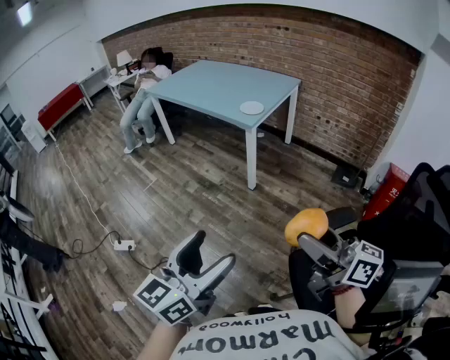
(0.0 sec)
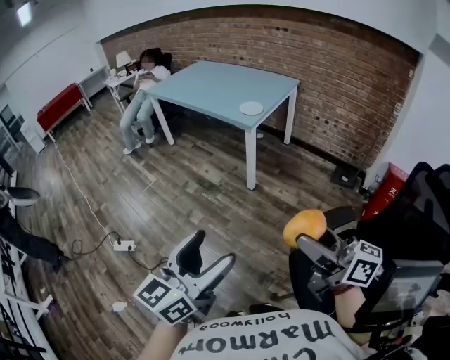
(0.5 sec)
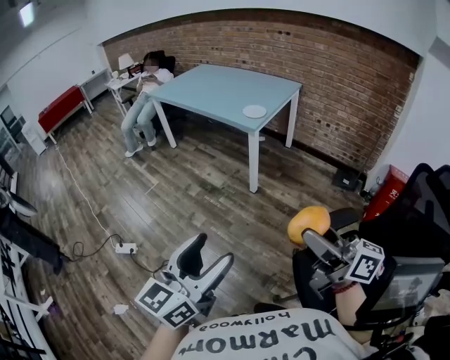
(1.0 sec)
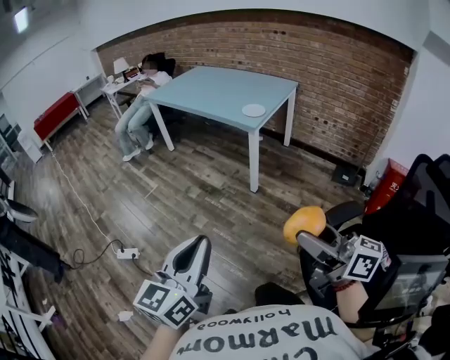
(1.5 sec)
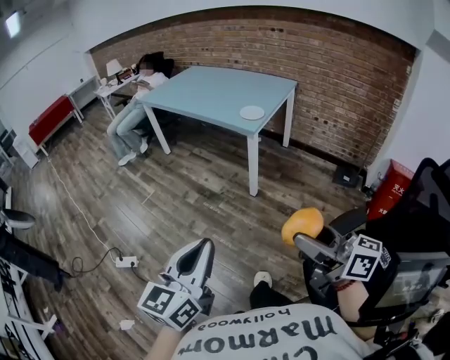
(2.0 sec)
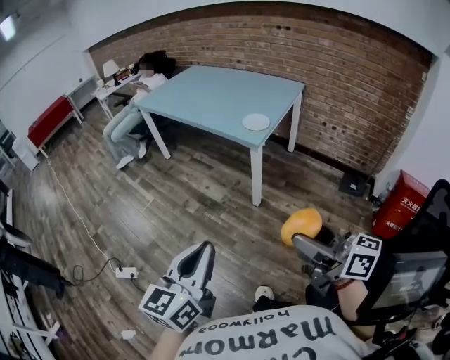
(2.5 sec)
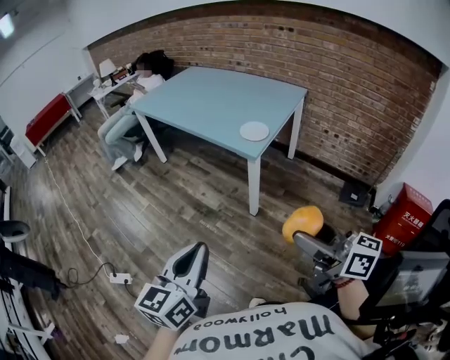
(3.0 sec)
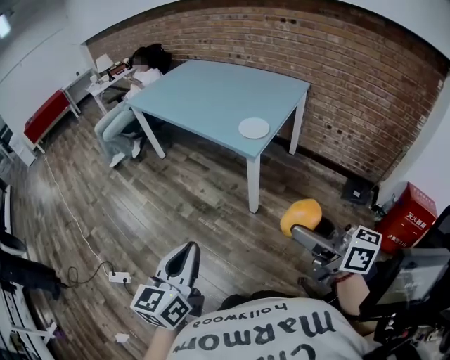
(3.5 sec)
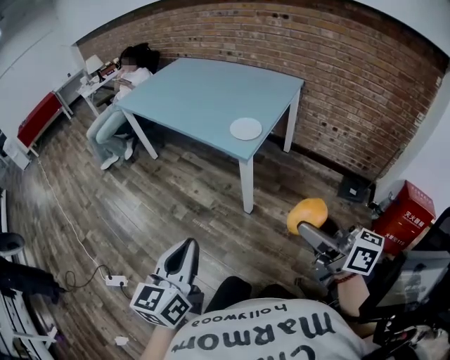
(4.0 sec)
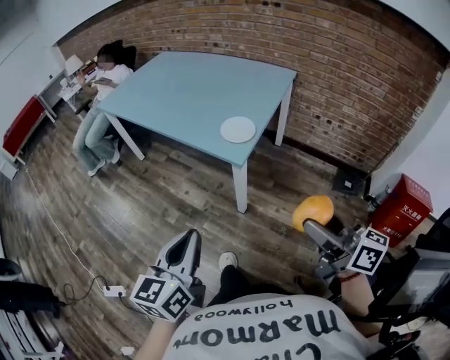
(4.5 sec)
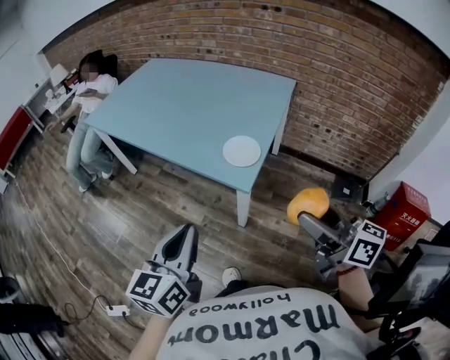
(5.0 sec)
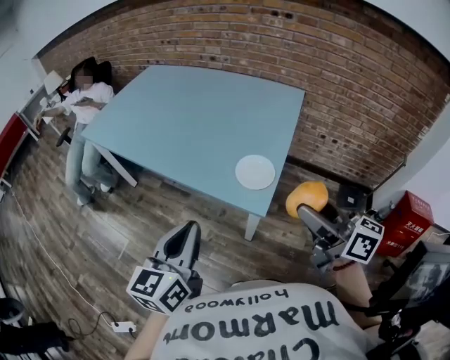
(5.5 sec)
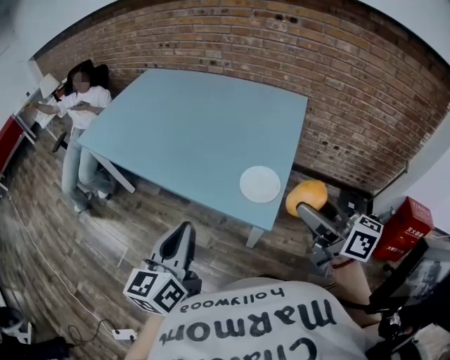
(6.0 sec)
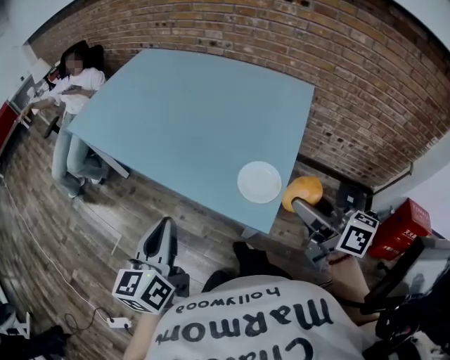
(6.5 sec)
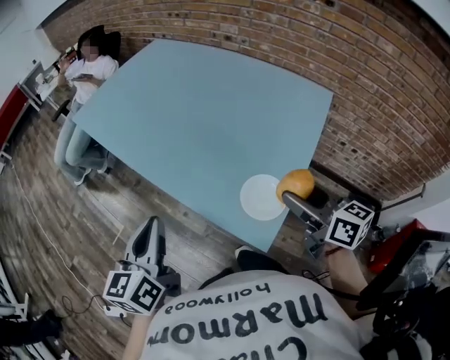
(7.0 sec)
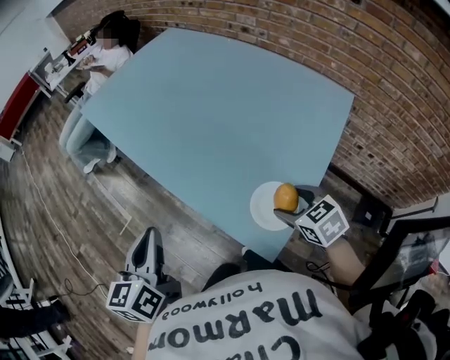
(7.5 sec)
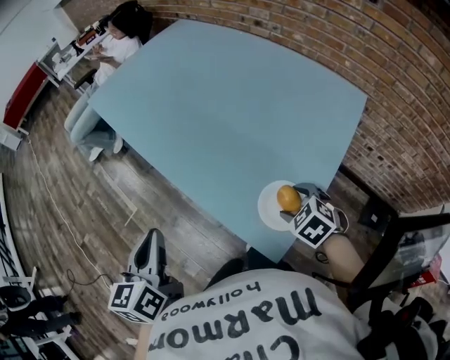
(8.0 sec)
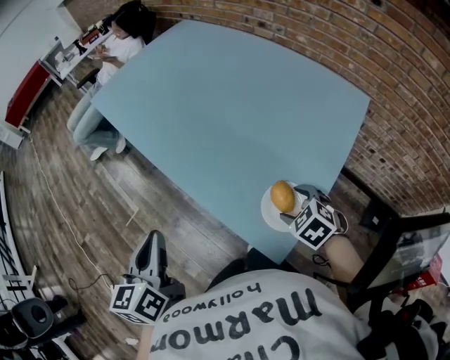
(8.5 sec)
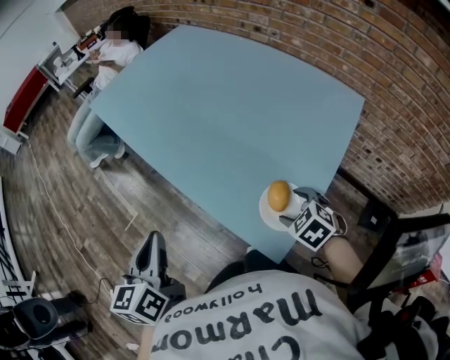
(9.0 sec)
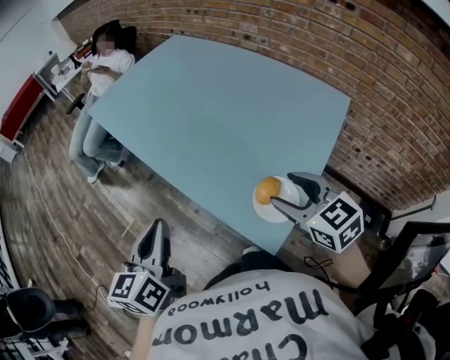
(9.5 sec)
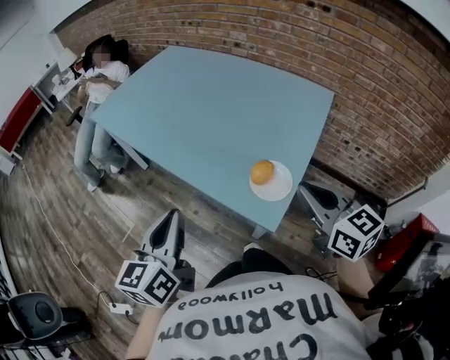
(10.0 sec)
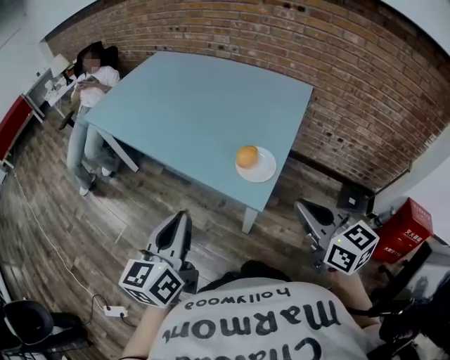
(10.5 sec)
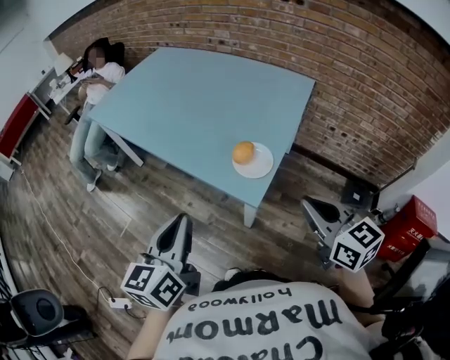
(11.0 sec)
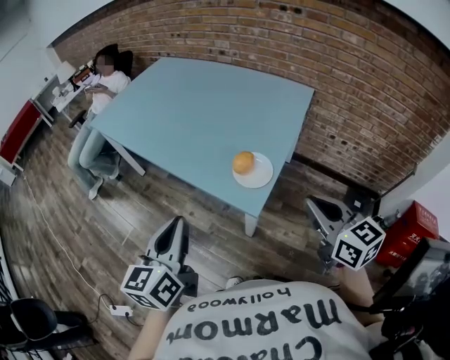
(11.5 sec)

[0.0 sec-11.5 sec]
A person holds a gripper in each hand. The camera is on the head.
0.0 sec to 2.0 sec: The grippers both shift to the left and forward by about 10 cm. The left gripper closes its fingers.
2.0 sec to 4.0 sec: The left gripper moves forward, about 30 cm. The right gripper heads forward and to the right, covering roughly 35 cm.
4.0 sec to 6.0 sec: Both grippers travel together forward, some 40 cm.
6.0 sec to 7.5 sec: The right gripper goes roughly 30 cm downward and forward, and points its fingers some 50 degrees further downward, while the left gripper heads forward, covering about 10 cm, and rotates roughly 30 degrees.
7.5 sec to 9.5 sec: The right gripper travels upward by about 10 cm.
9.5 sec to 11.5 sec: The left gripper travels backward and to the right by about 15 cm. The right gripper heads backward, covering some 25 cm, turns by about 30 degrees, and closes up.

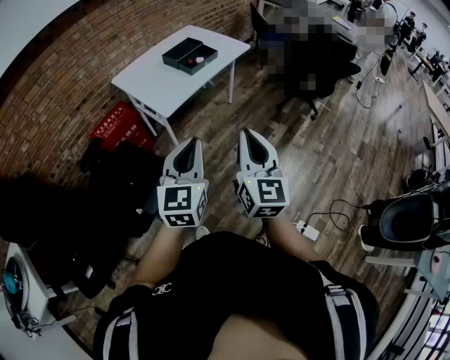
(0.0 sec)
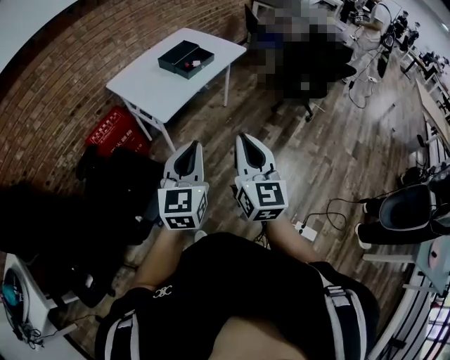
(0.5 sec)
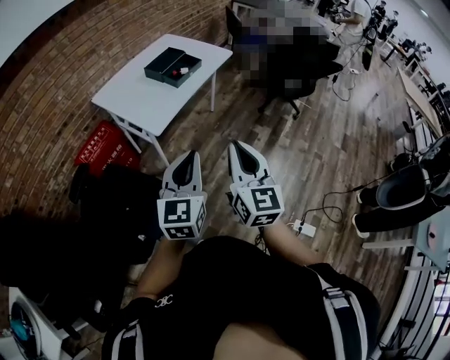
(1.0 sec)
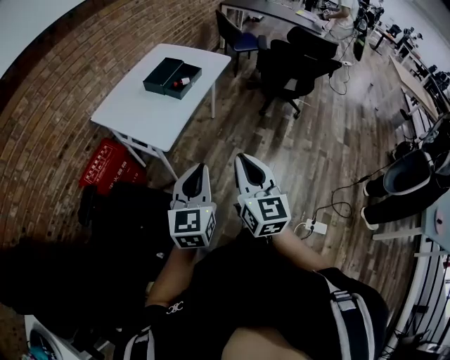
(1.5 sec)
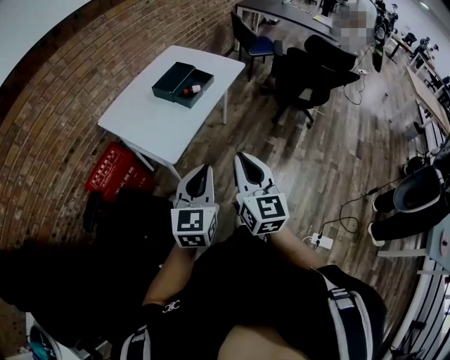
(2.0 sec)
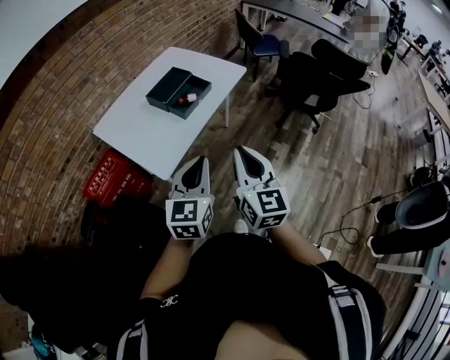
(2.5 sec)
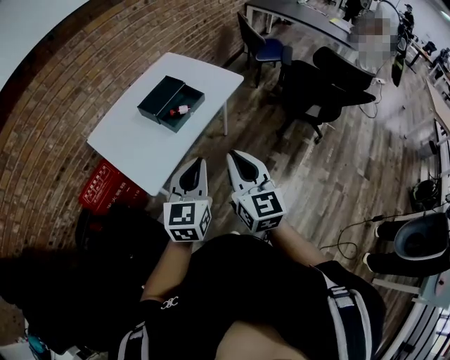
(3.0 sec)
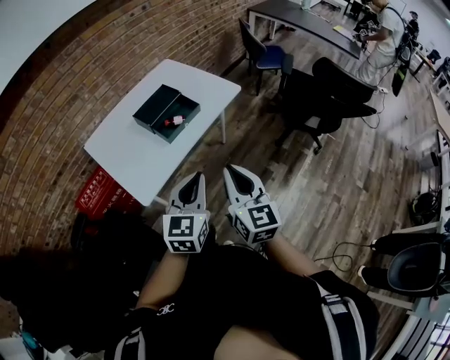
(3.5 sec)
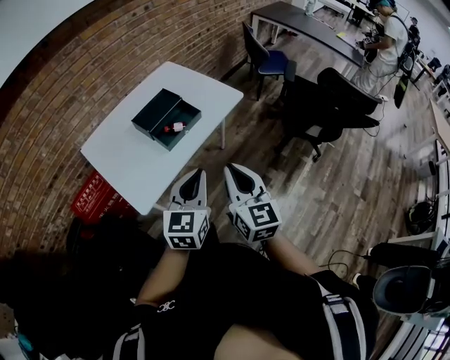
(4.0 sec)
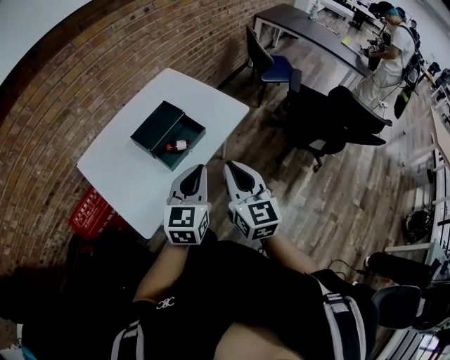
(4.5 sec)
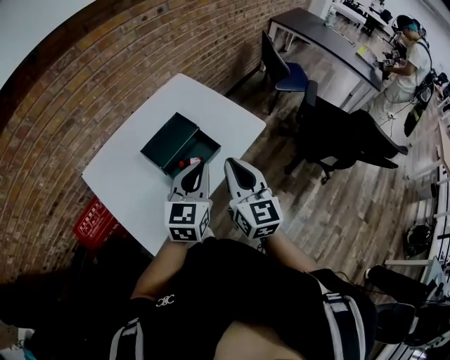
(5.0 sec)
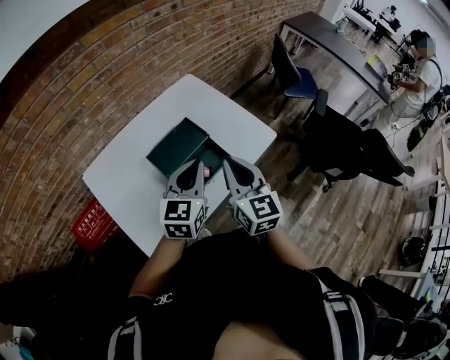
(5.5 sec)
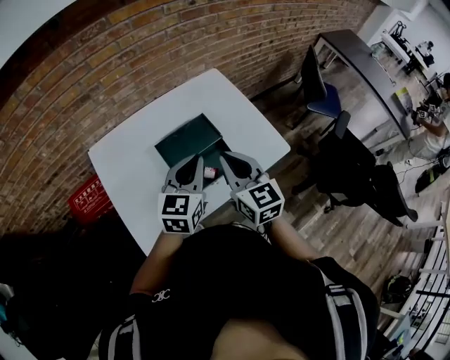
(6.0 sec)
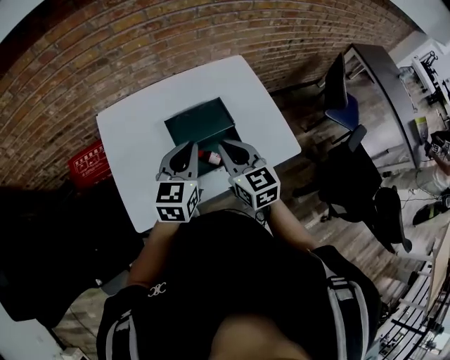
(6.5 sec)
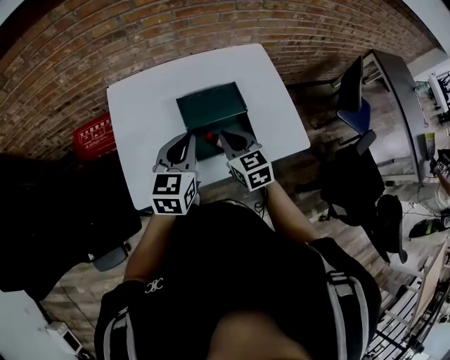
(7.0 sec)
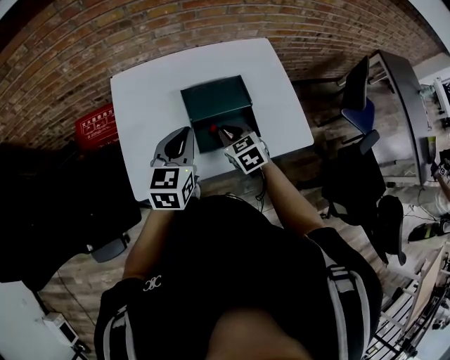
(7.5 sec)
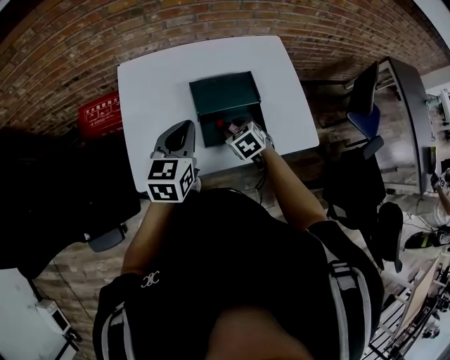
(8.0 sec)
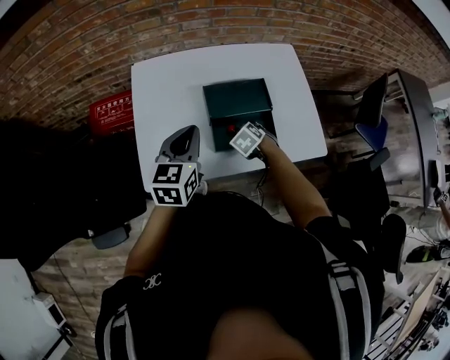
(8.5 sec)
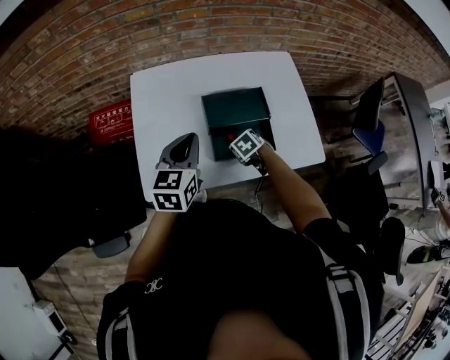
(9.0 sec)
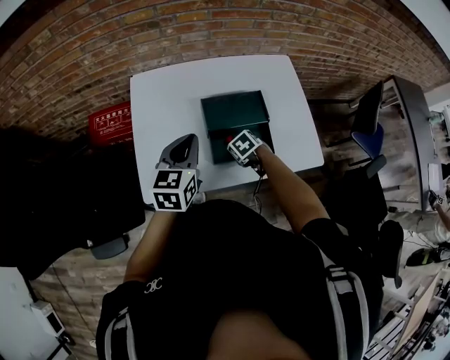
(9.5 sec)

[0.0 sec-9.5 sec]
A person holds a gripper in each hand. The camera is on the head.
0.0 sec to 2.0 sec: The two grippers go approximately 20 cm forward and to the left.
2.0 sec to 4.0 sec: Both grippers travel together forward and to the right, some 30 cm.
4.0 sec to 5.5 sec: The two grippers go about 30 cm forward.
5.5 sec to 7.5 sec: The right gripper is displaced downward by approximately 20 cm, and points its fingers approximately 30 degrees further downward; the left gripper shifts by some 10 cm, and swivels about 30 degrees.
7.5 sec to 9.5 sec: The right gripper is displaced downward by roughly 15 cm, points its fingers about 30 degrees further downward, and opens its fingers.

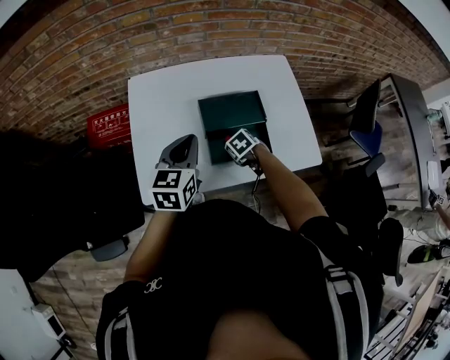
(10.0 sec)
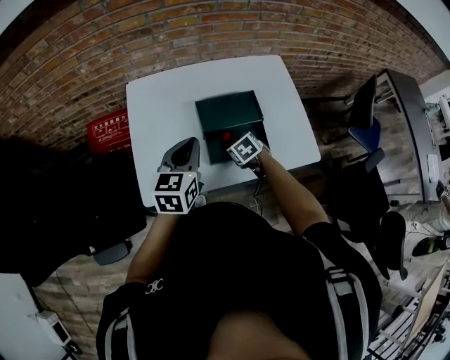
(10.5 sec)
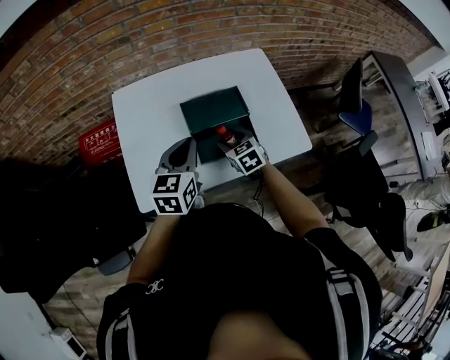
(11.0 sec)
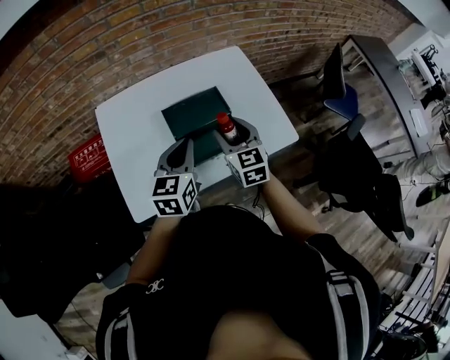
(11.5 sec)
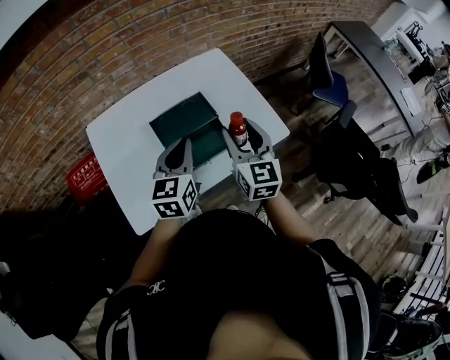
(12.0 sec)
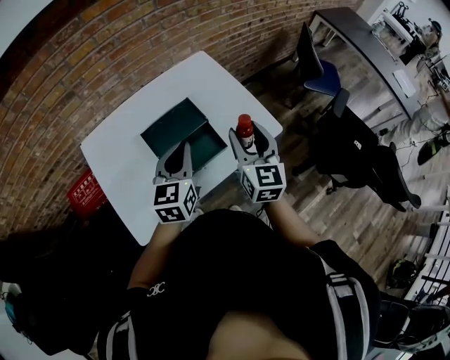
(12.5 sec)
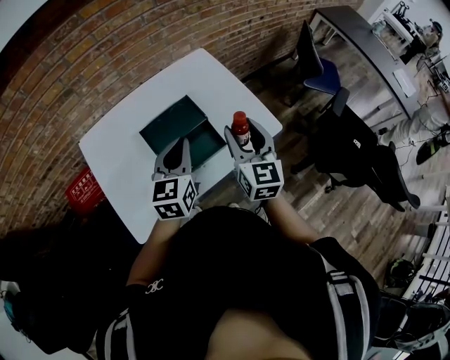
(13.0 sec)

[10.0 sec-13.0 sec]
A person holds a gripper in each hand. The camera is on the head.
10.0 sec to 11.5 sec: The right gripper heads upward, covering some 25 cm, and points its fingers some 50 degrees further upward. Meanwhile the left gripper shifts by some 10 cm.
11.5 sec to 13.0 sec: The left gripper is displaced to the right by about 5 cm. Meanwhile the right gripper shifts about 15 cm to the right and upward, and rotates roughly 30 degrees.

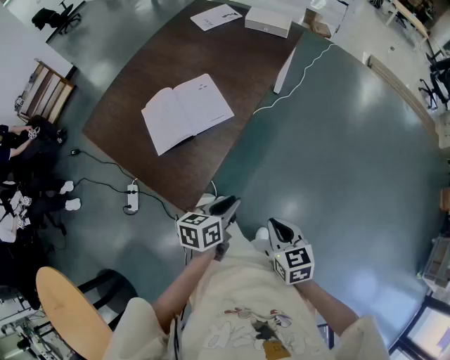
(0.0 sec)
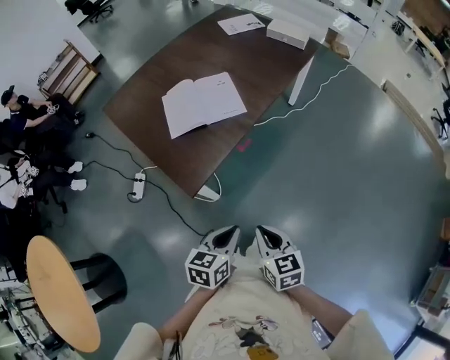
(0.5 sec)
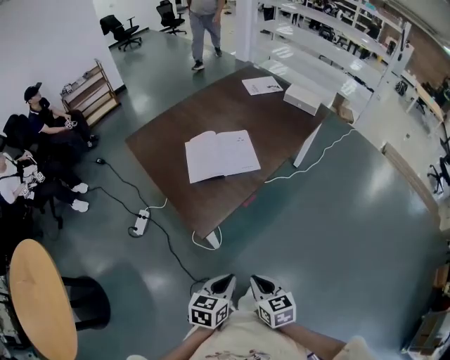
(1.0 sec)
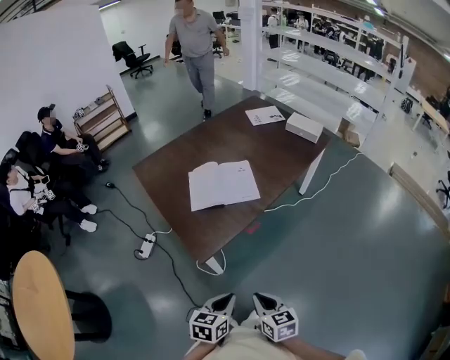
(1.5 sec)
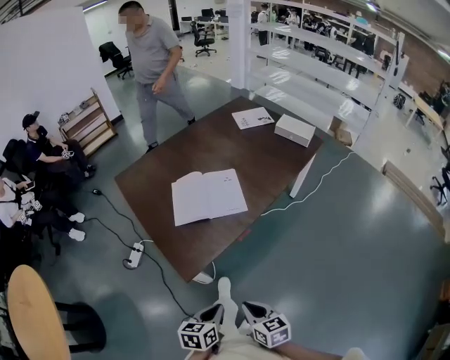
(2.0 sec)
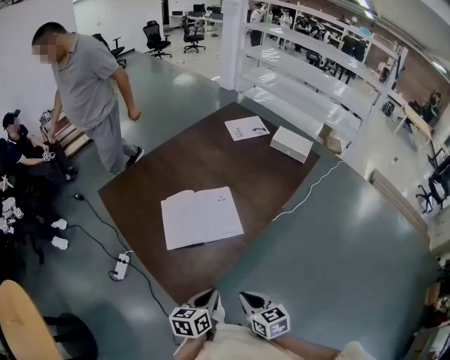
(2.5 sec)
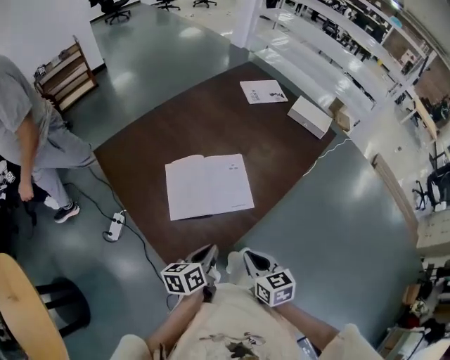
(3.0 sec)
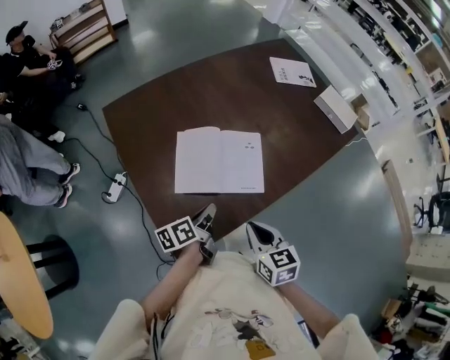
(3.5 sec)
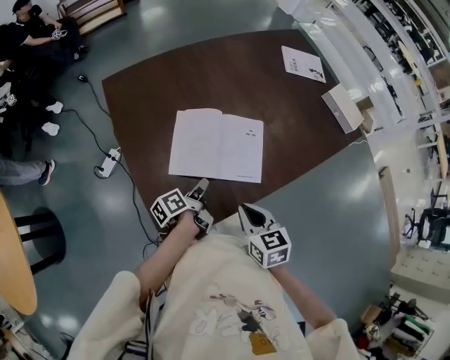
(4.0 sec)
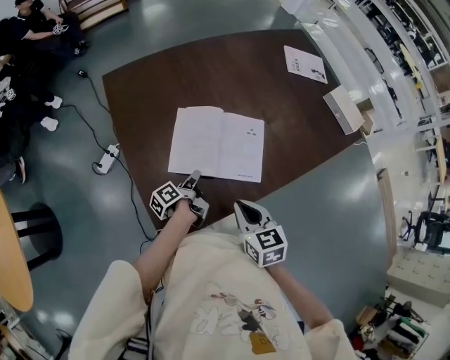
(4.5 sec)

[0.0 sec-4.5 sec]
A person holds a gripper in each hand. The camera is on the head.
0.0 sec to 2.0 sec: The right gripper changes its angle by some 20 degrees. The left gripper rotates approximately 20 degrees.
2.0 sec to 4.5 sec: Both grippers travel together forward, approximately 40 cm. The left gripper rolls counterclockwise, seen from behind, by about 70 degrees.
